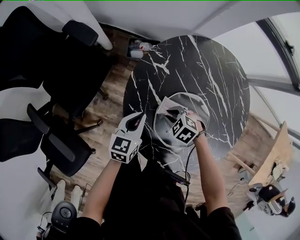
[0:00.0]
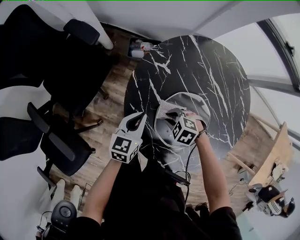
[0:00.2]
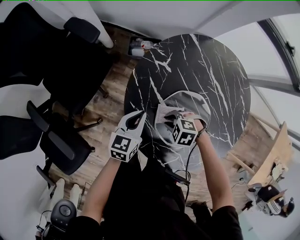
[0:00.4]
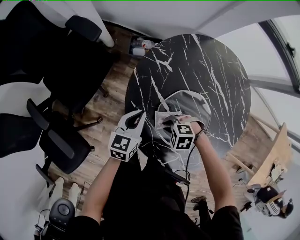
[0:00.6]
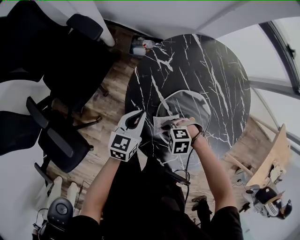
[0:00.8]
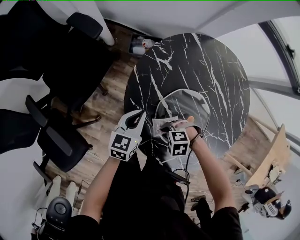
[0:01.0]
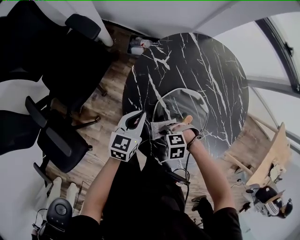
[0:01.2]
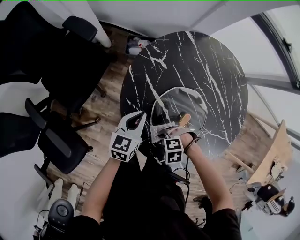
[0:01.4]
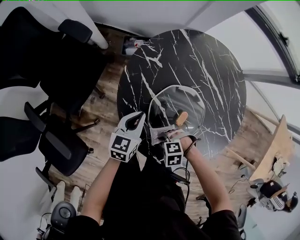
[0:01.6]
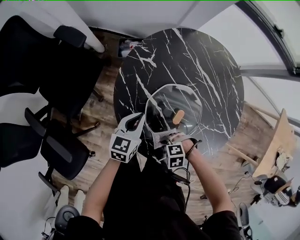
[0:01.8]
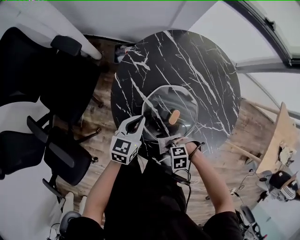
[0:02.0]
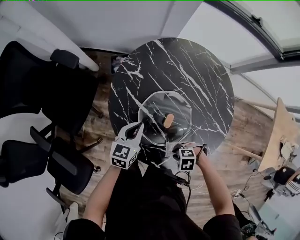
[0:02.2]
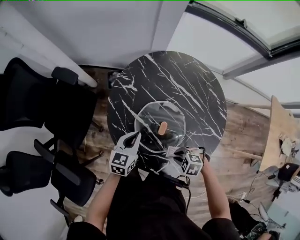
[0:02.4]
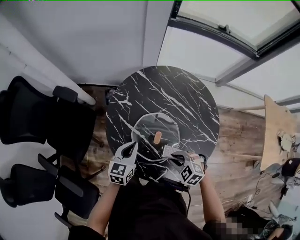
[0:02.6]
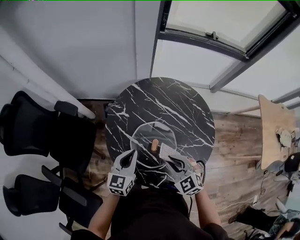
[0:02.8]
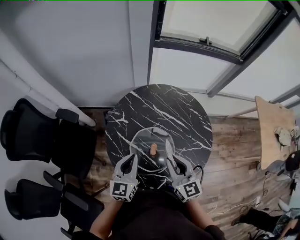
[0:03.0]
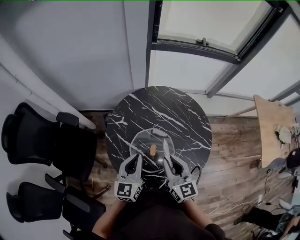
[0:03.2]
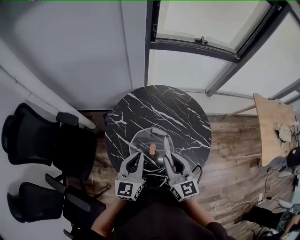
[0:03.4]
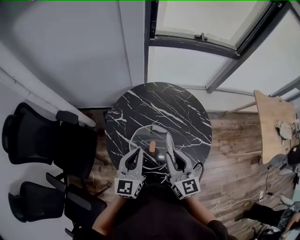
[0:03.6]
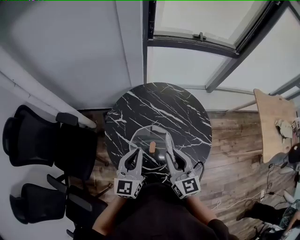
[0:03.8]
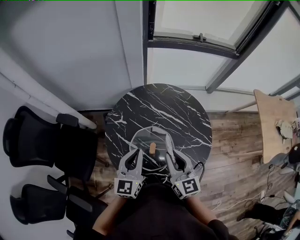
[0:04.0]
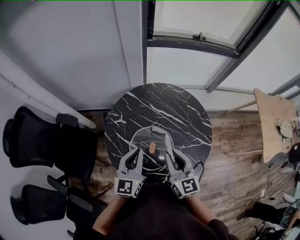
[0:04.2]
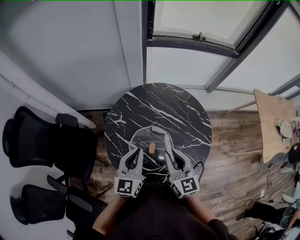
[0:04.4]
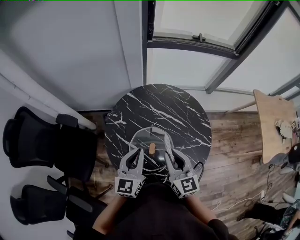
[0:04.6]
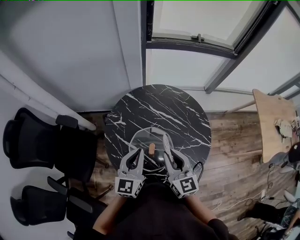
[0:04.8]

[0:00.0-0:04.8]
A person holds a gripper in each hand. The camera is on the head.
0.0 to 1.6 s: The right gripper moves roughly 20 cm, and rotates some 30 degrees.
1.6 to 3.2 s: The right gripper goes some 35 cm upward, and tips its fingers upward by some 60 degrees. The left gripper moves upward, roughly 25 cm, and turns by roughly 30 degrees.
3.2 to 4.8 s: The grippers stay close to where they were, moving slightly.

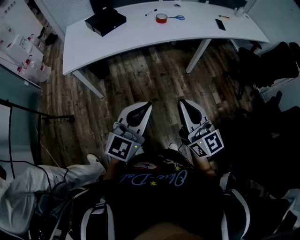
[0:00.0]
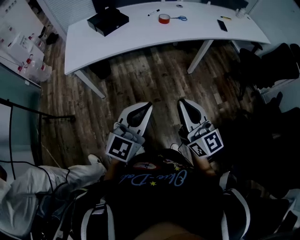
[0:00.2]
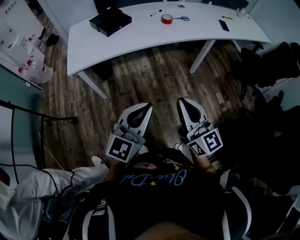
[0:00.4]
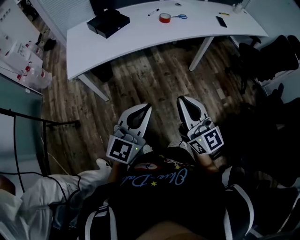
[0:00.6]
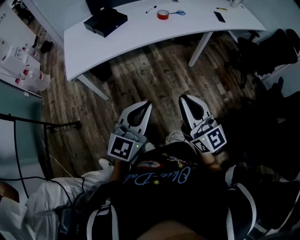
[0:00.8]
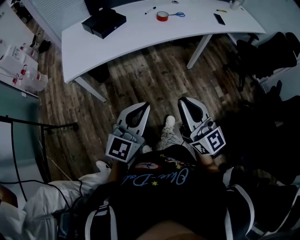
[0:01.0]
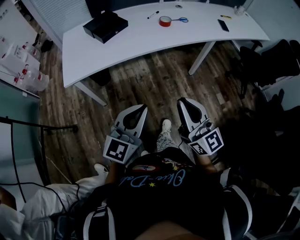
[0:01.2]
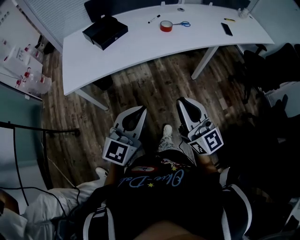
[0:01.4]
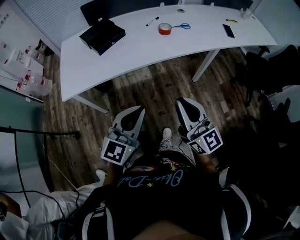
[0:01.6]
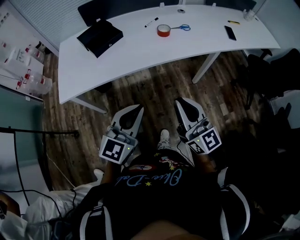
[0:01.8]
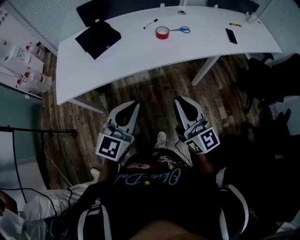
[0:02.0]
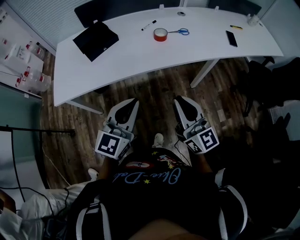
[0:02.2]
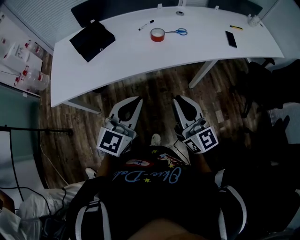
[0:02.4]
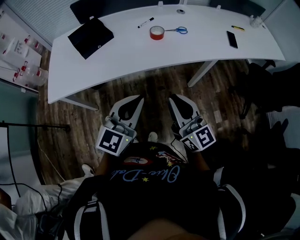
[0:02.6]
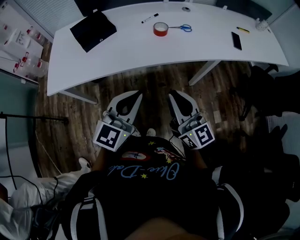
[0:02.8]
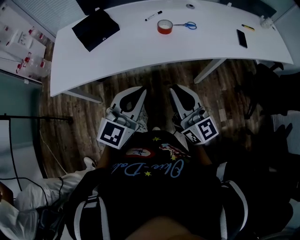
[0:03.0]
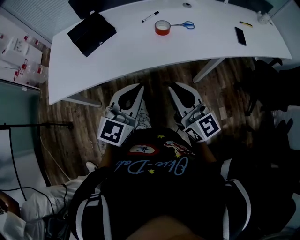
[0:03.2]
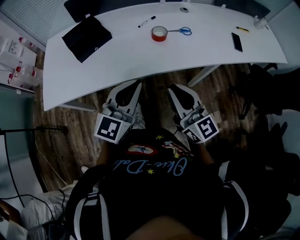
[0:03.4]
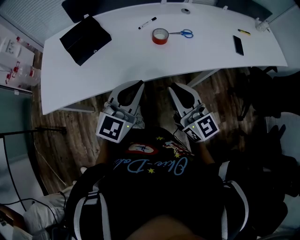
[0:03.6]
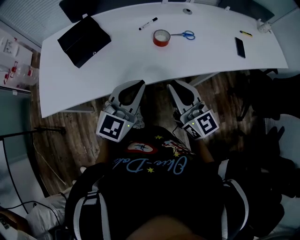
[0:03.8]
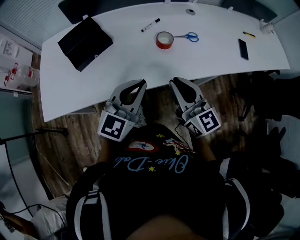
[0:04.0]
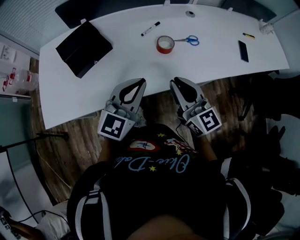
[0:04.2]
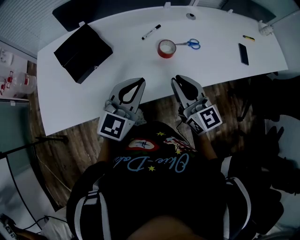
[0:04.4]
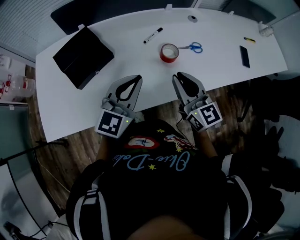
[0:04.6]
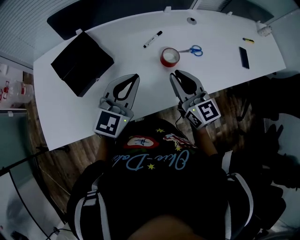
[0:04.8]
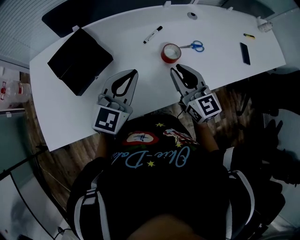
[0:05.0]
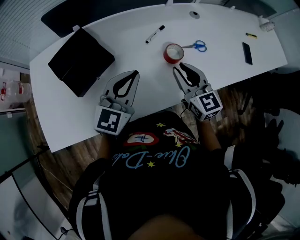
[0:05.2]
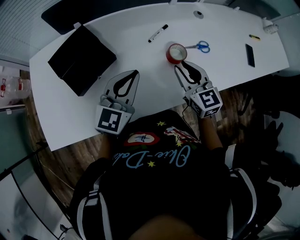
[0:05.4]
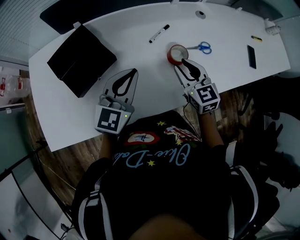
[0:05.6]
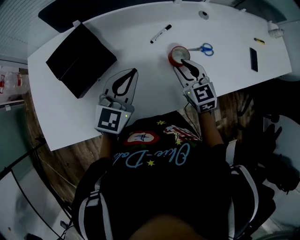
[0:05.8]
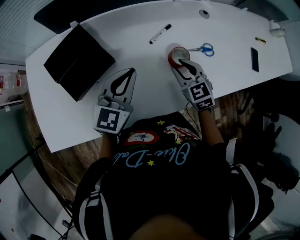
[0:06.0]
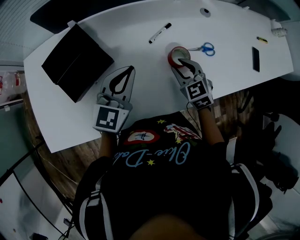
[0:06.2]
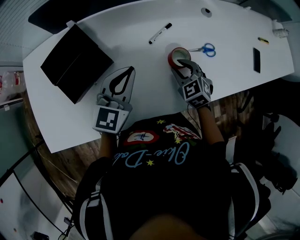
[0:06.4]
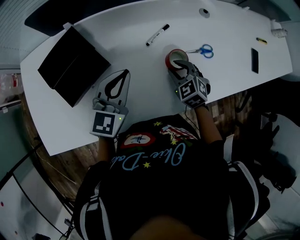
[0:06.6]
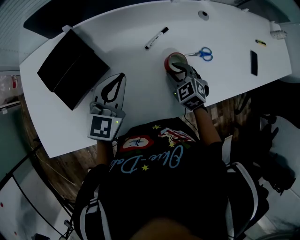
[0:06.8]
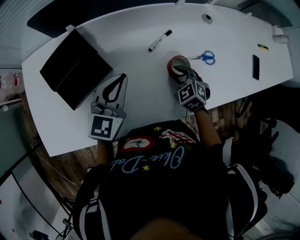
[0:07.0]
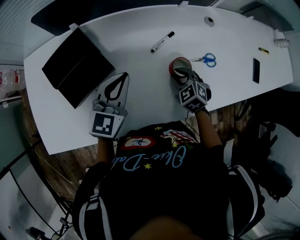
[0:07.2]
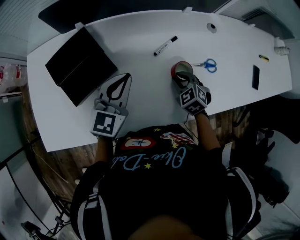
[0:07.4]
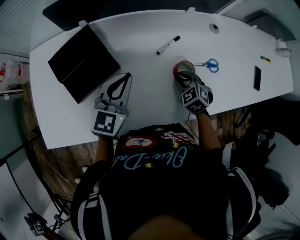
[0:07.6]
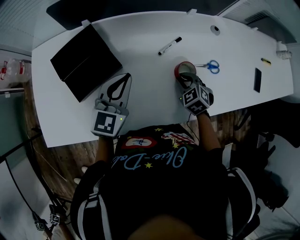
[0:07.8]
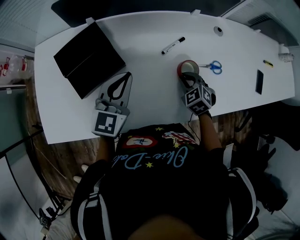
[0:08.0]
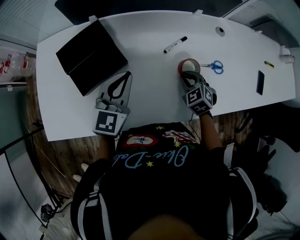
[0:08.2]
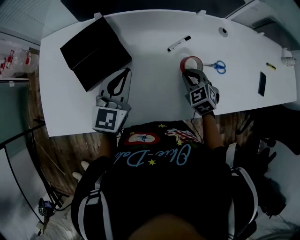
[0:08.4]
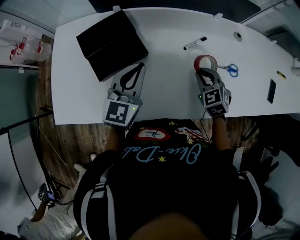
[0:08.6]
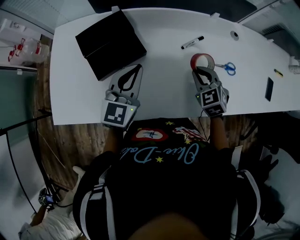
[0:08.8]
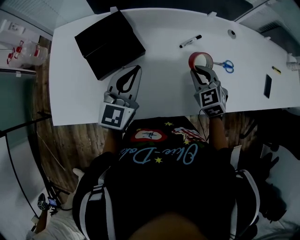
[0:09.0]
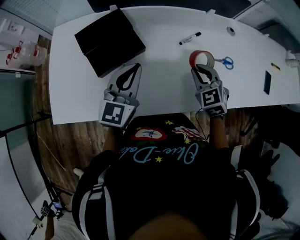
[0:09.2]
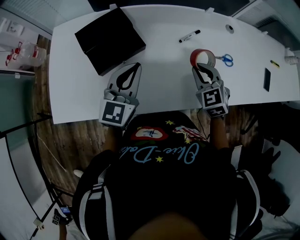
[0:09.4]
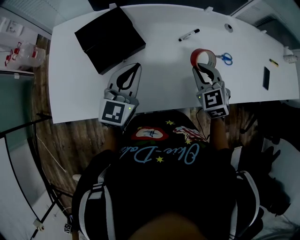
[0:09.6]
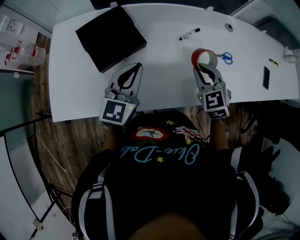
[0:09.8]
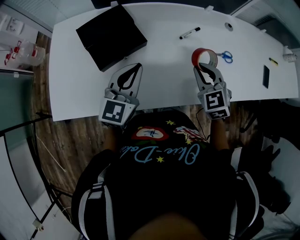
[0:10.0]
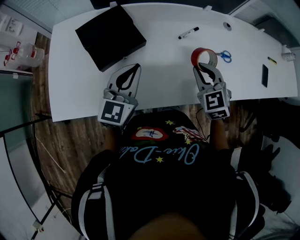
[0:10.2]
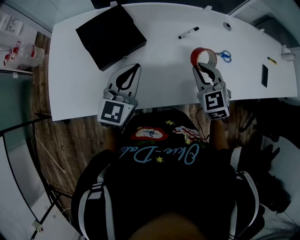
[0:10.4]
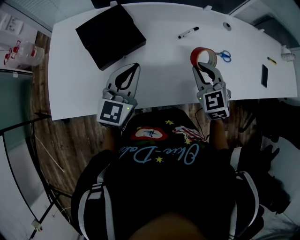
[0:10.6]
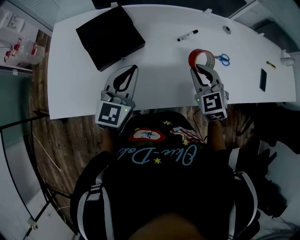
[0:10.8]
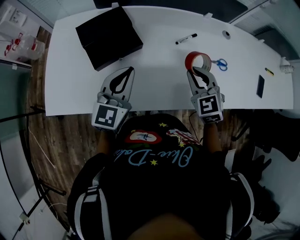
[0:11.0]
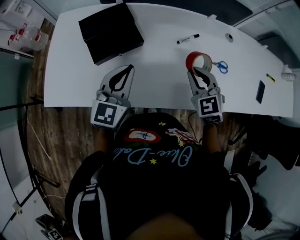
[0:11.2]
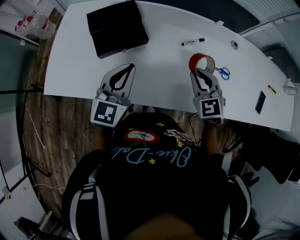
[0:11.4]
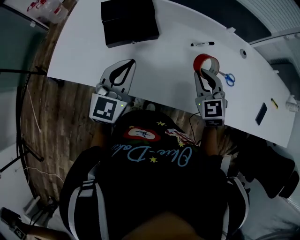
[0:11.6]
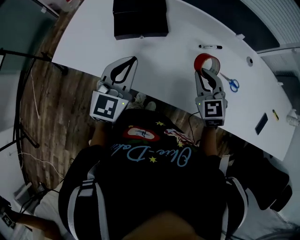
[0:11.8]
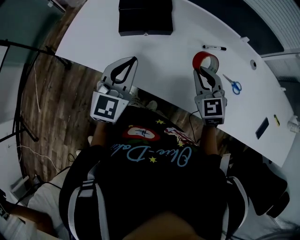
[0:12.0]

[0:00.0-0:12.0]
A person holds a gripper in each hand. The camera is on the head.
0.0 to 1.6 s: The two grippers go about 15 cm forward.
1.6 to 3.0 s: Both grippers travel together forward and to the right, approximately 15 cm.
3.0 to 4.4 s: The two grippers go about 20 cm forward.
4.4 to 6.0 s: The right gripper moves forward and downward, about 20 cm, and tilts its fingers roughly 30 degrees downward. Meanwhile the left gripper is displaced forward, to the left and downward by about 15 cm.
6.0 to 7.6 s: The right gripper travels downward by roughly 5 cm, and swivels about 30 degrees.
7.6 to 9.0 s: The left gripper is displaced to the left and backward by about 5 cm. The right gripper is displaced upward by about 10 cm.
9.0 to 10.4 s: The right gripper goes roughly 5 cm backward.
10.4 to 12.0 s: The right gripper swivels roughly 20 degrees. Meanwhile the left gripper ends up approximately 10 cm from where it was, and swivels roughly 30 degrees.

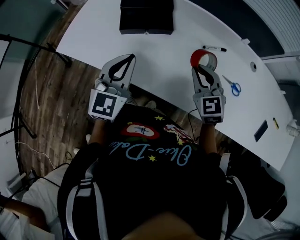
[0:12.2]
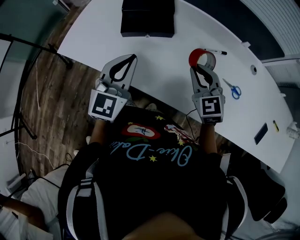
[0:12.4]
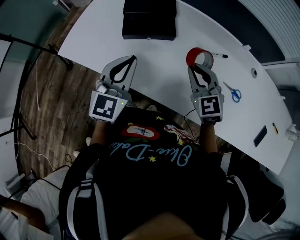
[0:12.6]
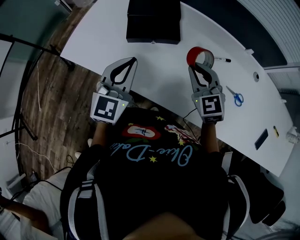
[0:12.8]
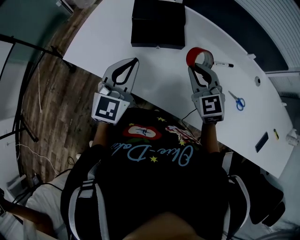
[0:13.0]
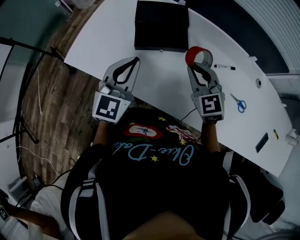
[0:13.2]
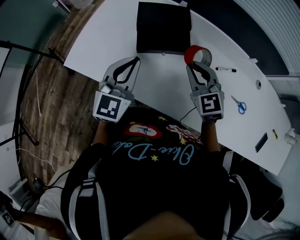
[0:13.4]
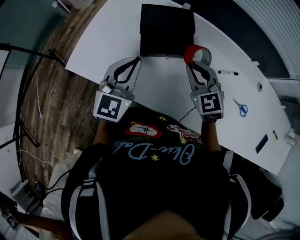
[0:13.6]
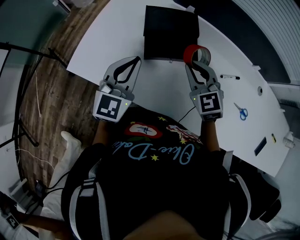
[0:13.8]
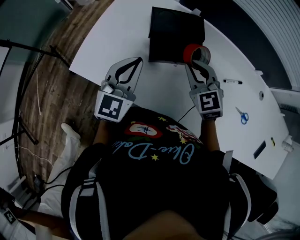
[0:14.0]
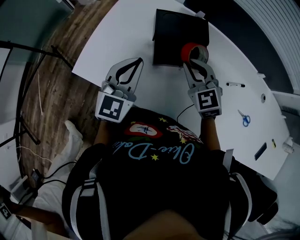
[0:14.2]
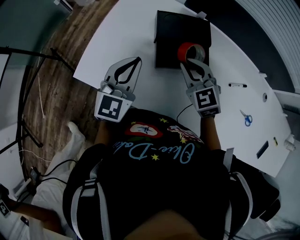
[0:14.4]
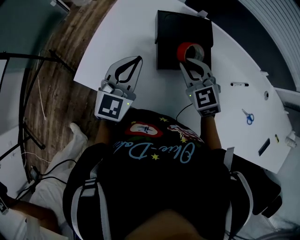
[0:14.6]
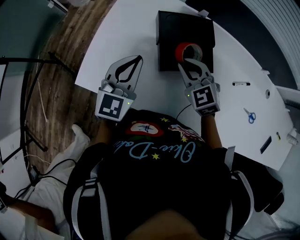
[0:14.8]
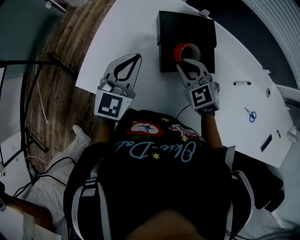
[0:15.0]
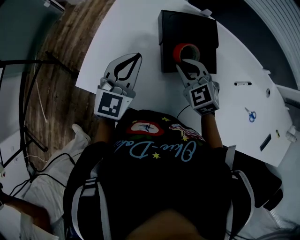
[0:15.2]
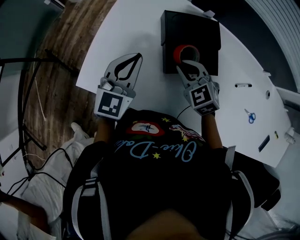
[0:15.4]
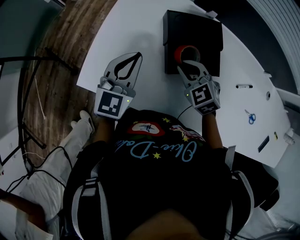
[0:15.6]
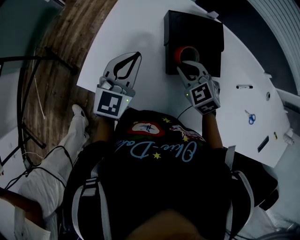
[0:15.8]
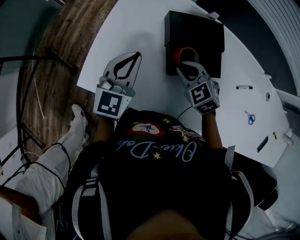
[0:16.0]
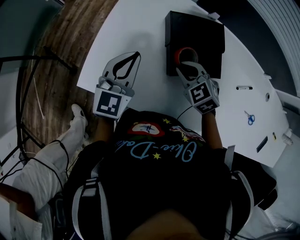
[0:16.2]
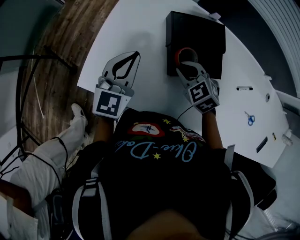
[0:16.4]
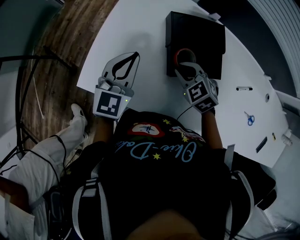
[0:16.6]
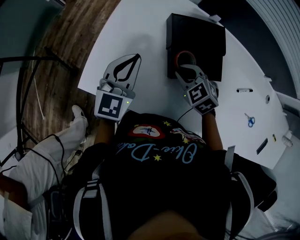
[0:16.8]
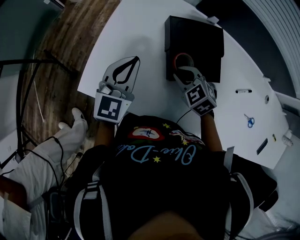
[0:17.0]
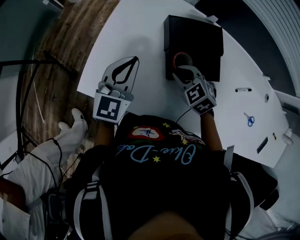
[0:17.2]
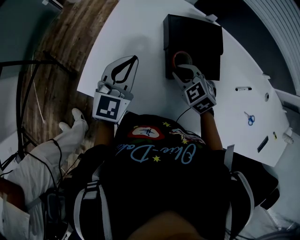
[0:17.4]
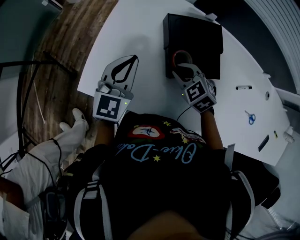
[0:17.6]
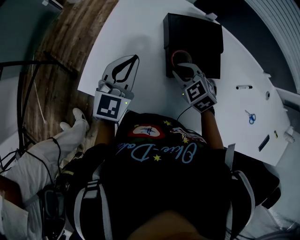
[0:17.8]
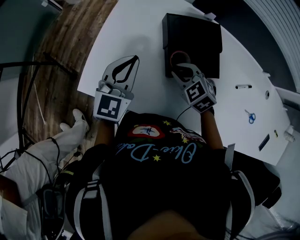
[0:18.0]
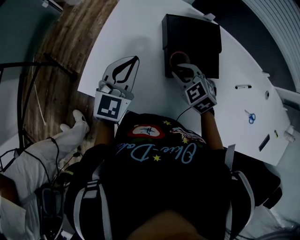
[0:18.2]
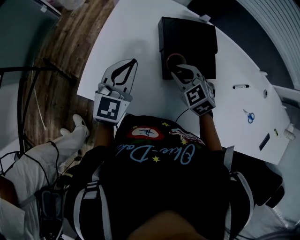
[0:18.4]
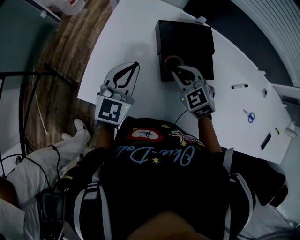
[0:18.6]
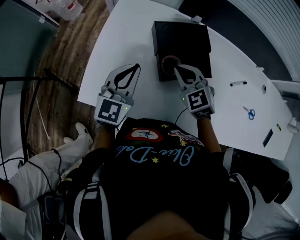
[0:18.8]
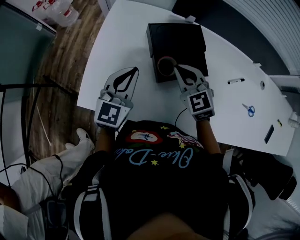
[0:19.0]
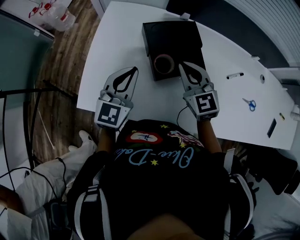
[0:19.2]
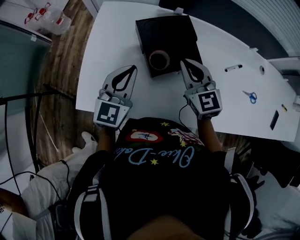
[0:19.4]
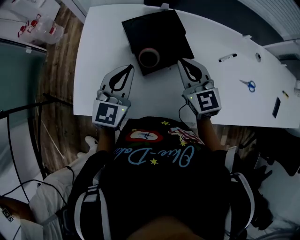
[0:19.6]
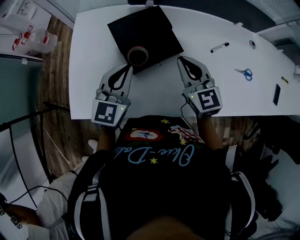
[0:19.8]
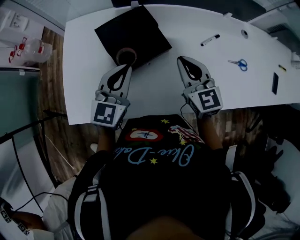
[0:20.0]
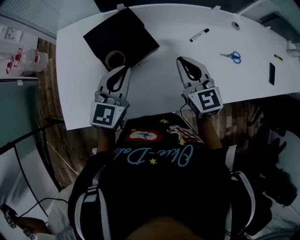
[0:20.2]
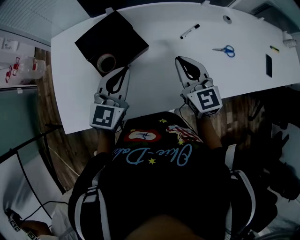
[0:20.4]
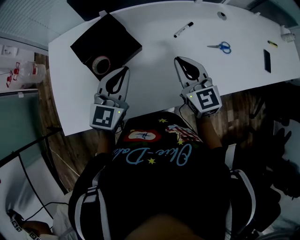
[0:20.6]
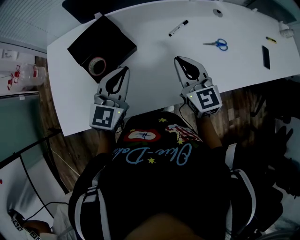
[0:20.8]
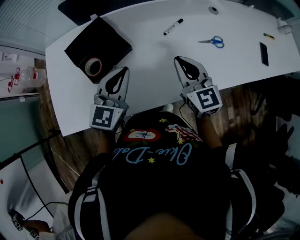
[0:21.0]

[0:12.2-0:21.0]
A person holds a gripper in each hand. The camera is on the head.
12.2 to 13.6 s: The left gripper heads forward and to the left, covering roughly 15 cm; the right gripper shifts approximately 15 cm to the left and forward.
13.6 to 15.2 s: The left gripper goes approximately 15 cm forward and to the left, while the right gripper is displaced to the left, forward and downward by approximately 15 cm.
15.2 to 16.6 s: The grippers stay close to where they were, moving slightly.
16.6 to 18.0 s: The two grippers keep their place.
18.0 to 19.6 s: The left gripper goes about 10 cm to the right; the right gripper goes roughly 15 cm upward and to the right, and tilts its fingers roughly 30 degrees upward.
19.6 to 21.0 s: Both grippers travel together to the right, roughly 20 cm. The right gripper changes its angle by about 20 degrees.
